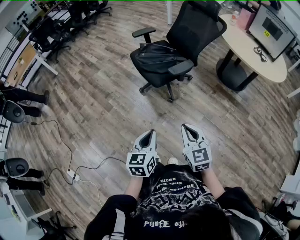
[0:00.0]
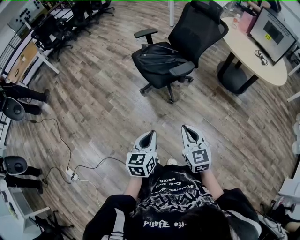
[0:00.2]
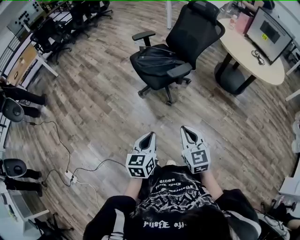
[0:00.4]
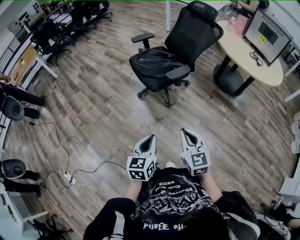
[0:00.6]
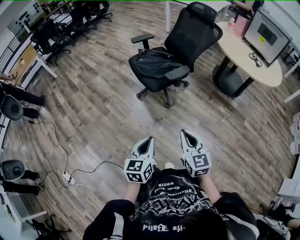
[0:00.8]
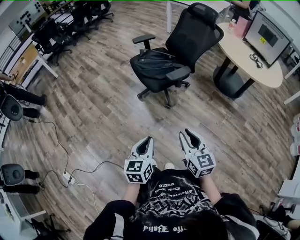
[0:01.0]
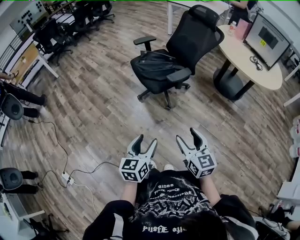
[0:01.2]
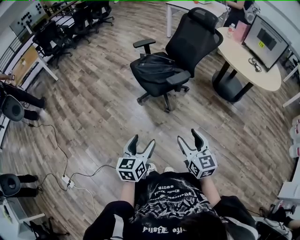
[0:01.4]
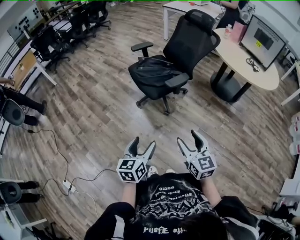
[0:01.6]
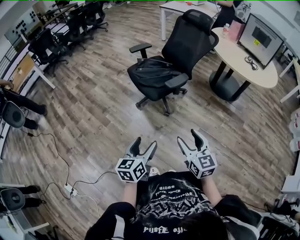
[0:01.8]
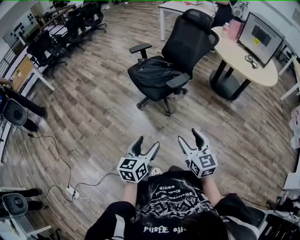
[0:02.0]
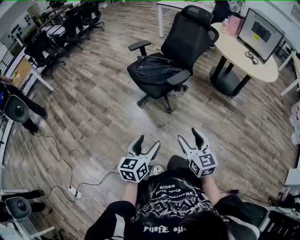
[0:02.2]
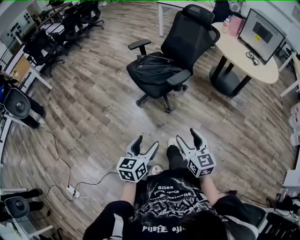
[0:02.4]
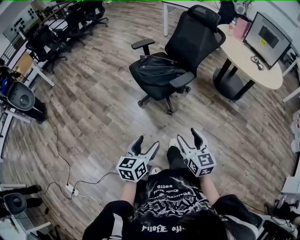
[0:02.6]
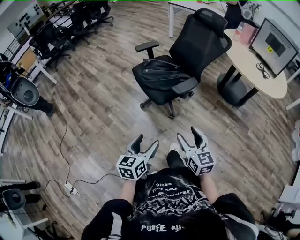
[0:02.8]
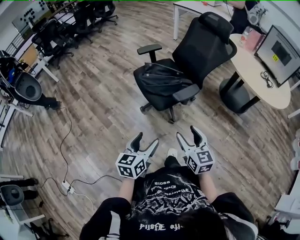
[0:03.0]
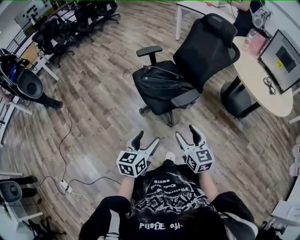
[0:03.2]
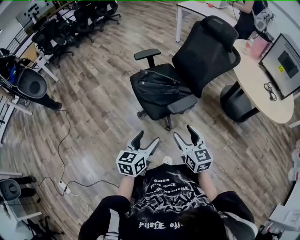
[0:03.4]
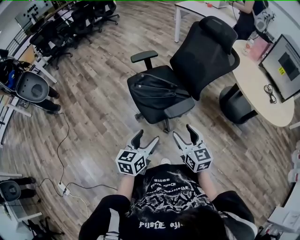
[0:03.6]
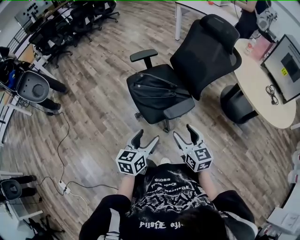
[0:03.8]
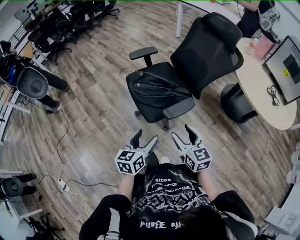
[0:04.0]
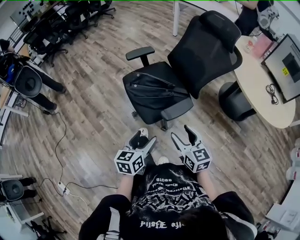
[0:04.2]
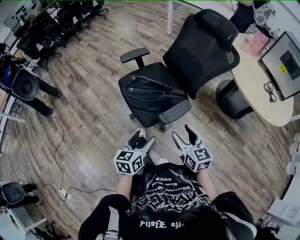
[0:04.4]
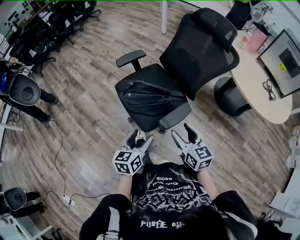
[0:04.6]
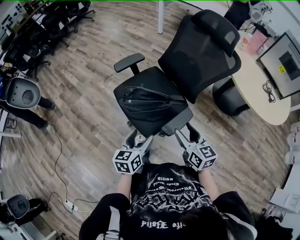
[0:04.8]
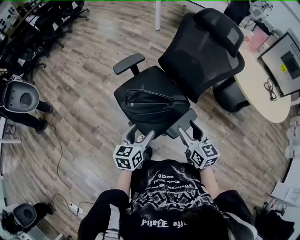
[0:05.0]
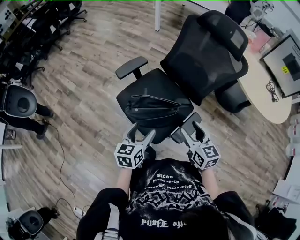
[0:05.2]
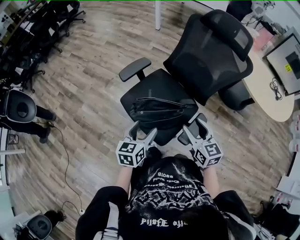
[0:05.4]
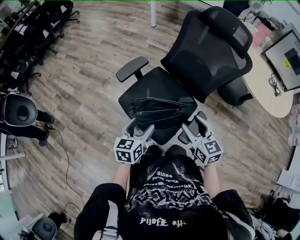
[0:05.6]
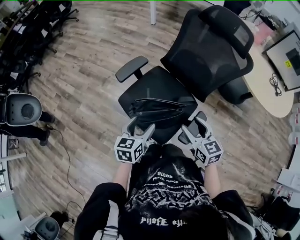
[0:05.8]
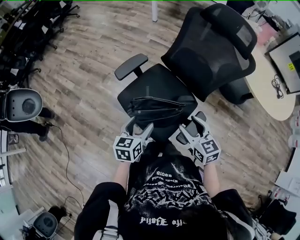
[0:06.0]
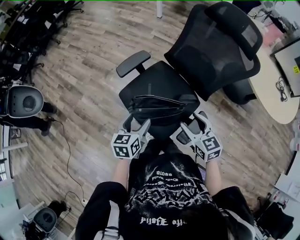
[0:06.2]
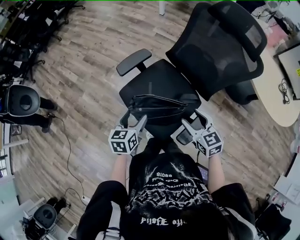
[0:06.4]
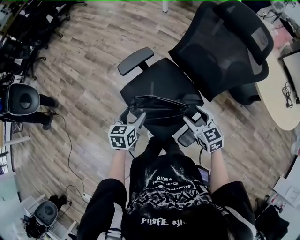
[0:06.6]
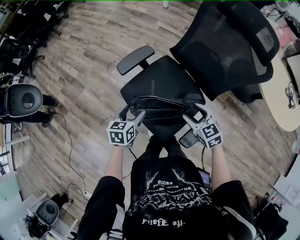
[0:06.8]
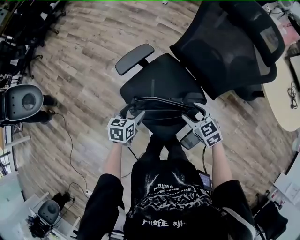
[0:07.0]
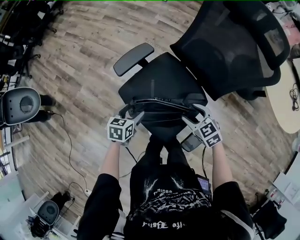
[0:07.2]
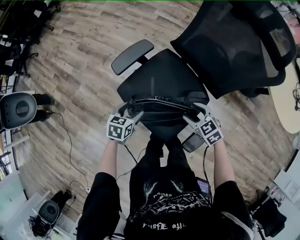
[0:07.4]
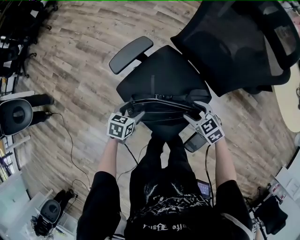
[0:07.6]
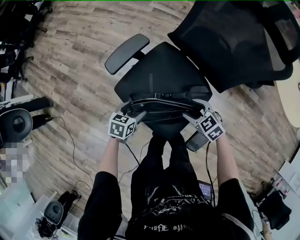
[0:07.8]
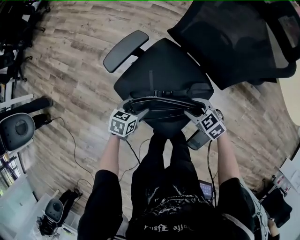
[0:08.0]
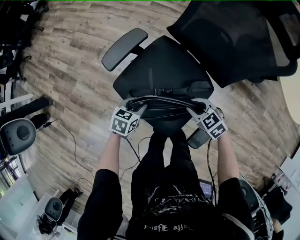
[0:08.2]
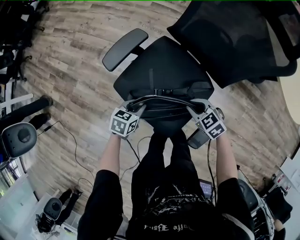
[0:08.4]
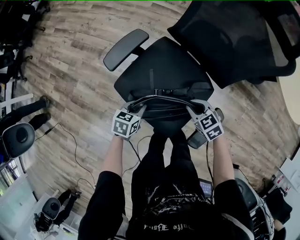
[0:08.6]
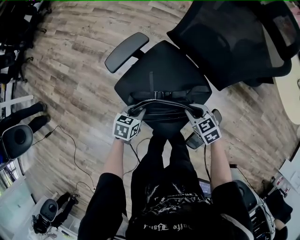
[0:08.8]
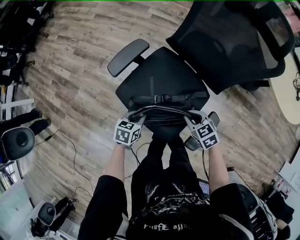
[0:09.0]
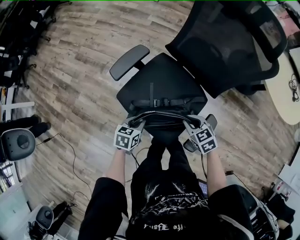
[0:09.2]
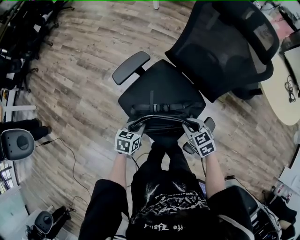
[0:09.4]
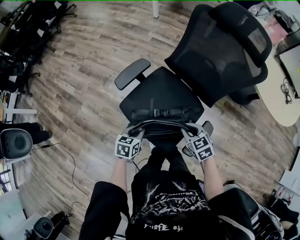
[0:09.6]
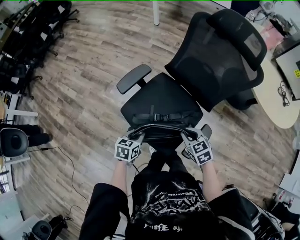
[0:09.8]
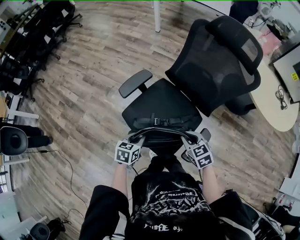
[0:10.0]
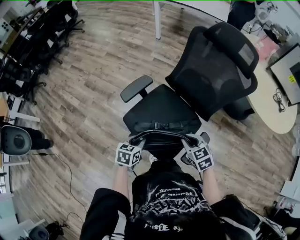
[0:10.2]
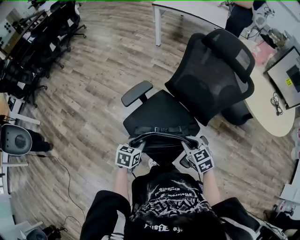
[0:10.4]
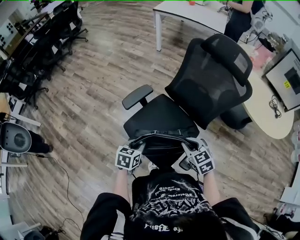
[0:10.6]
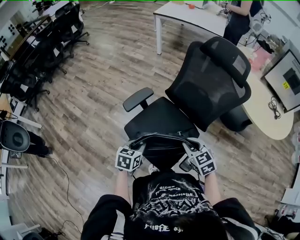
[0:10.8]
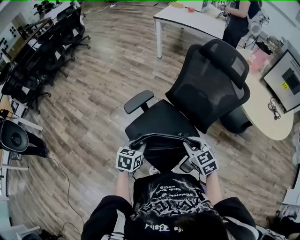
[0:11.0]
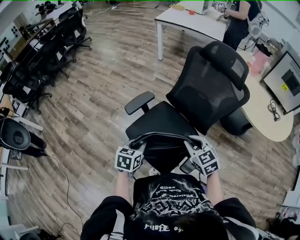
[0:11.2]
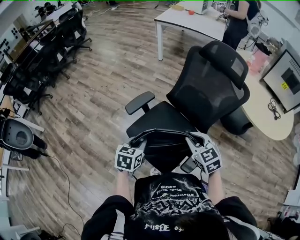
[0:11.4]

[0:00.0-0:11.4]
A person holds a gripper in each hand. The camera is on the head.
0:00.0 to 0:01.4: The left gripper opens. The right gripper opens up.
0:01.4 to 0:02.8: Both grippers travel together forward, about 10 cm.
0:02.8 to 0:04.2: The right gripper moves forward, some 25 cm. The left gripper is displaced forward and to the right by approximately 25 cm.
0:04.2 to 0:05.6: The left gripper heads forward and to the left, covering approximately 35 cm, while the right gripper moves forward, approximately 25 cm.
0:05.6 to 0:07.2: The grippers both shift downward and forward by some 20 cm. The left gripper rotates roughly 20 degrees. The right gripper rotates about 30 degrees.
0:07.2 to 0:08.6: The grippers both shift downward by roughly 10 cm. The left gripper closes. Meanwhile the right gripper closes its fingers.
0:08.6 to 0:10.0: The two grippers go roughly 15 cm upward and backward.
0:10.0 to 0:11.4: The grippers both shift upward by about 15 cm.

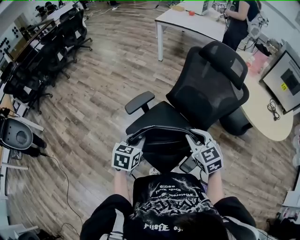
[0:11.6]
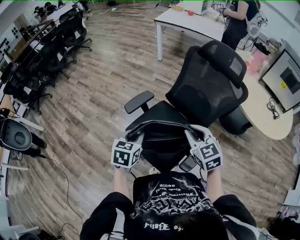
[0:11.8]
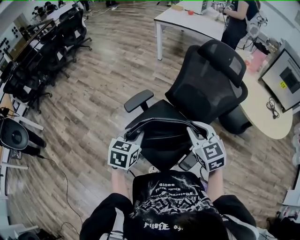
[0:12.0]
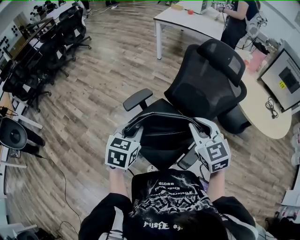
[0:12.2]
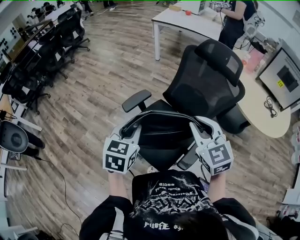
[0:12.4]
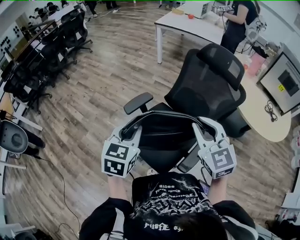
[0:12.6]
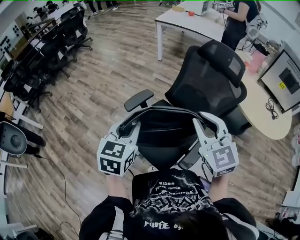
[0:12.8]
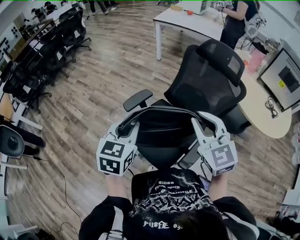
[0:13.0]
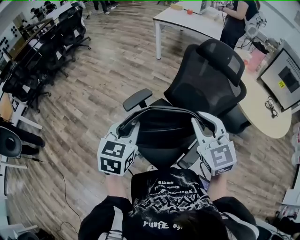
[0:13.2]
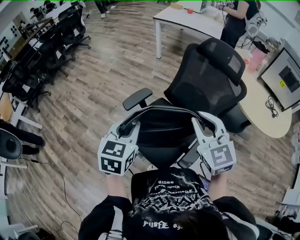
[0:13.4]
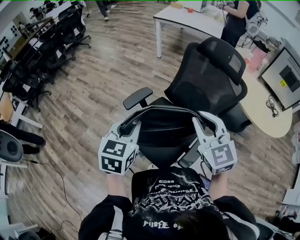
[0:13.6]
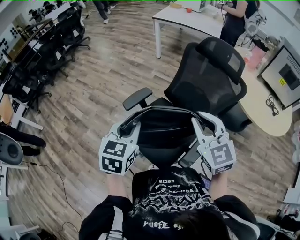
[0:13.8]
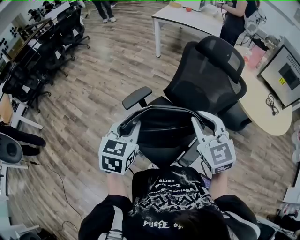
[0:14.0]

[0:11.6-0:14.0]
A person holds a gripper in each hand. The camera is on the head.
0:11.6 to 0:12.8: The grippers both shift upward by roughly 15 cm.
0:12.8 to 0:14.0: The grippers move only a little.

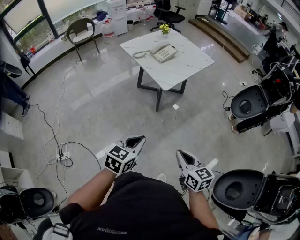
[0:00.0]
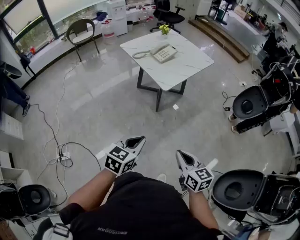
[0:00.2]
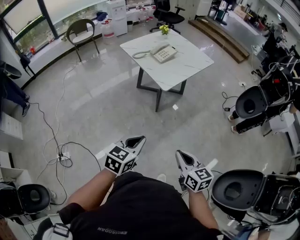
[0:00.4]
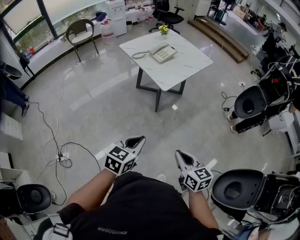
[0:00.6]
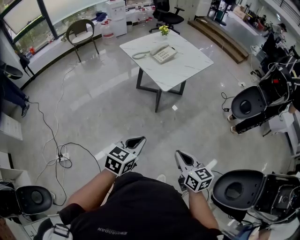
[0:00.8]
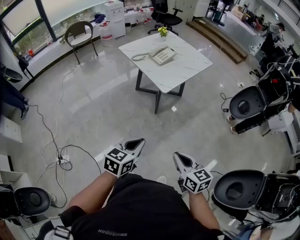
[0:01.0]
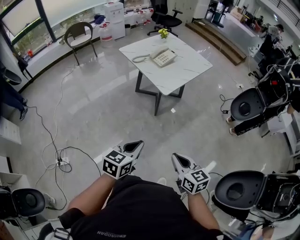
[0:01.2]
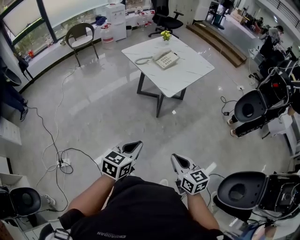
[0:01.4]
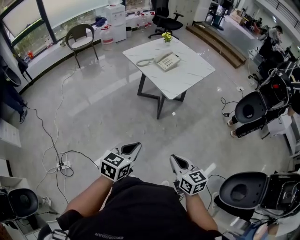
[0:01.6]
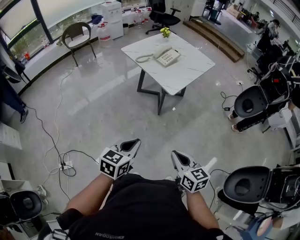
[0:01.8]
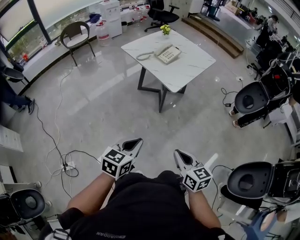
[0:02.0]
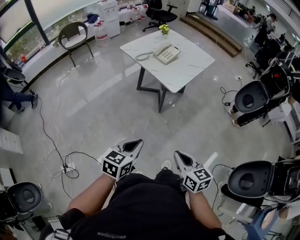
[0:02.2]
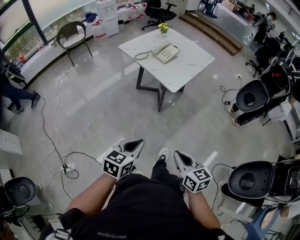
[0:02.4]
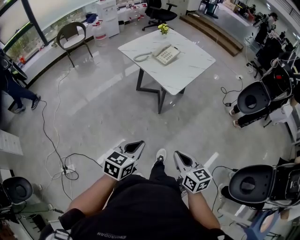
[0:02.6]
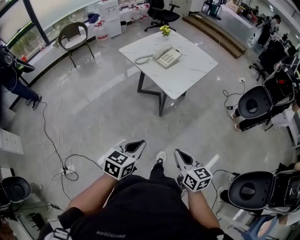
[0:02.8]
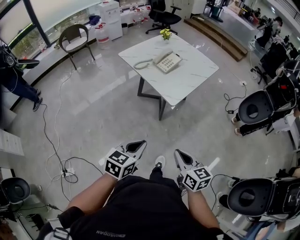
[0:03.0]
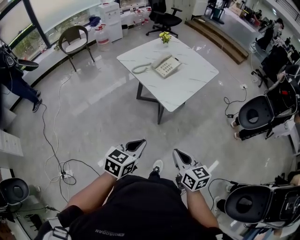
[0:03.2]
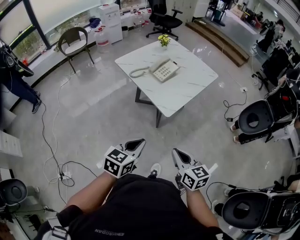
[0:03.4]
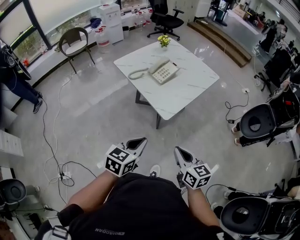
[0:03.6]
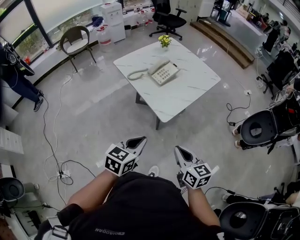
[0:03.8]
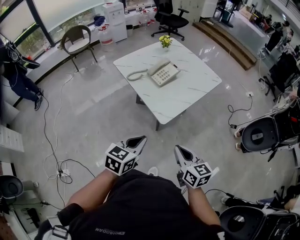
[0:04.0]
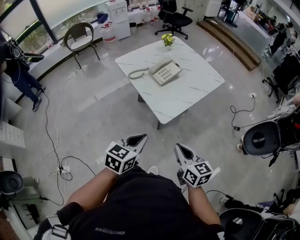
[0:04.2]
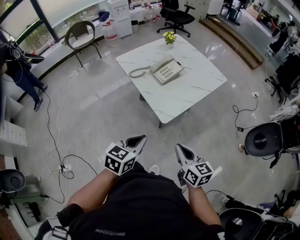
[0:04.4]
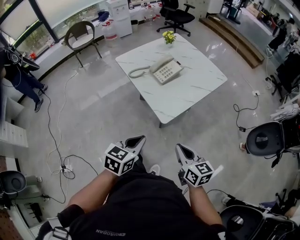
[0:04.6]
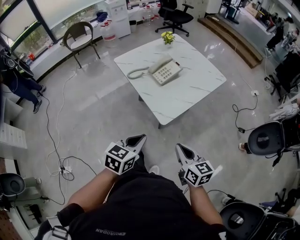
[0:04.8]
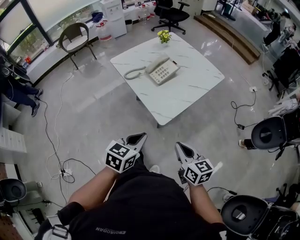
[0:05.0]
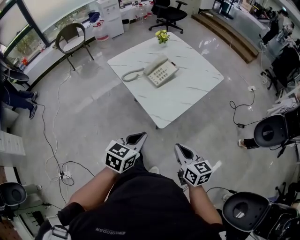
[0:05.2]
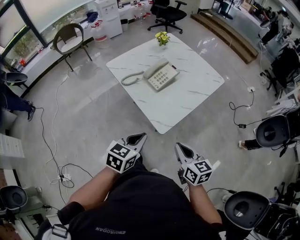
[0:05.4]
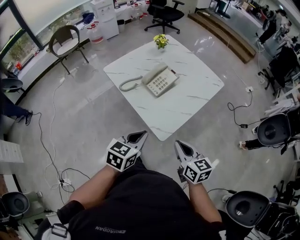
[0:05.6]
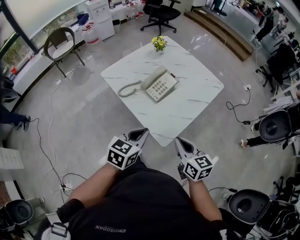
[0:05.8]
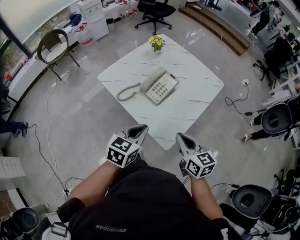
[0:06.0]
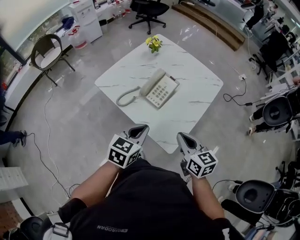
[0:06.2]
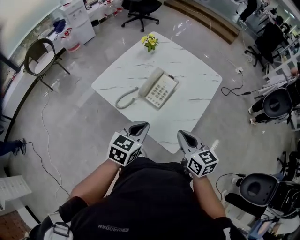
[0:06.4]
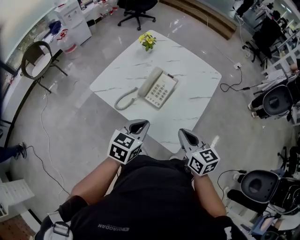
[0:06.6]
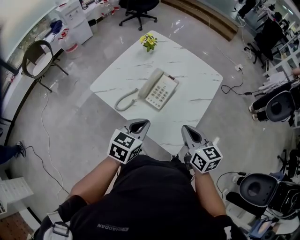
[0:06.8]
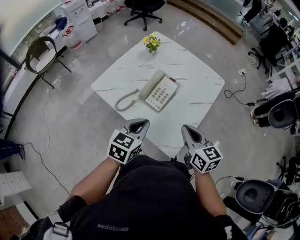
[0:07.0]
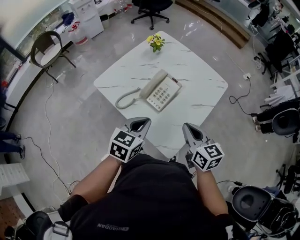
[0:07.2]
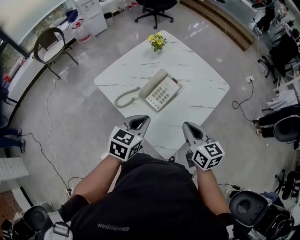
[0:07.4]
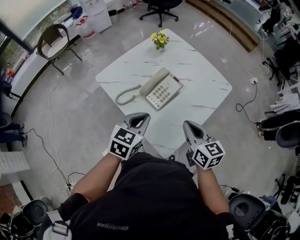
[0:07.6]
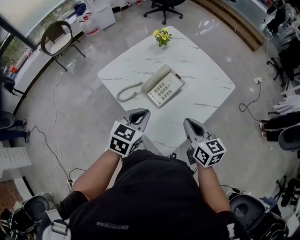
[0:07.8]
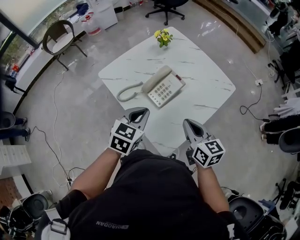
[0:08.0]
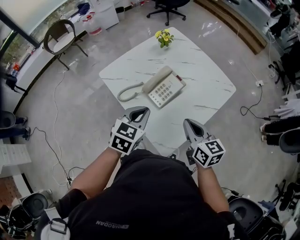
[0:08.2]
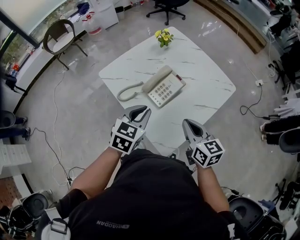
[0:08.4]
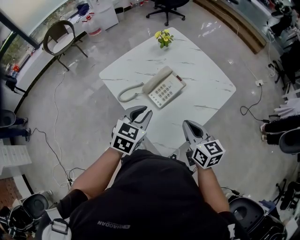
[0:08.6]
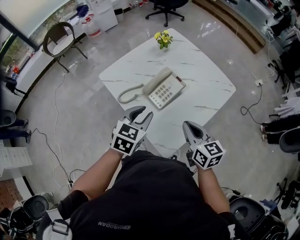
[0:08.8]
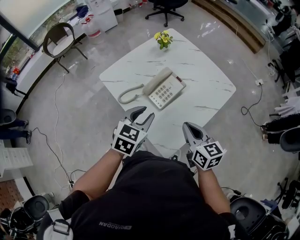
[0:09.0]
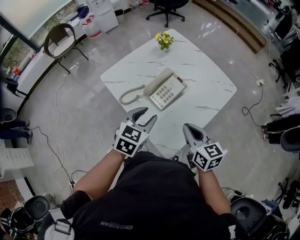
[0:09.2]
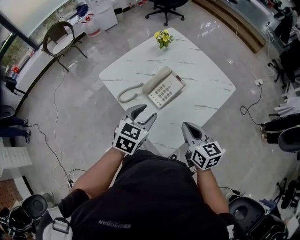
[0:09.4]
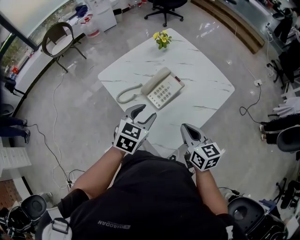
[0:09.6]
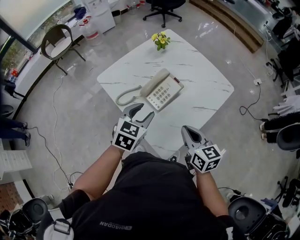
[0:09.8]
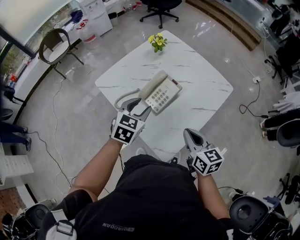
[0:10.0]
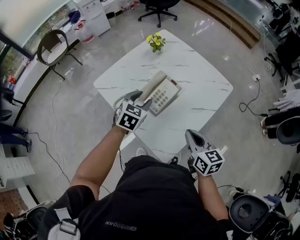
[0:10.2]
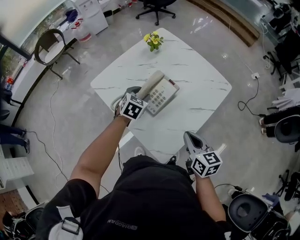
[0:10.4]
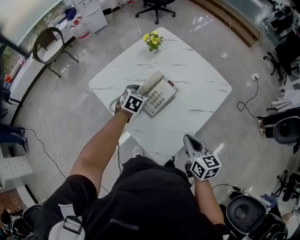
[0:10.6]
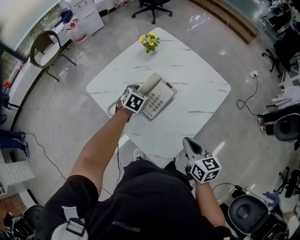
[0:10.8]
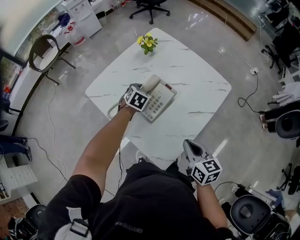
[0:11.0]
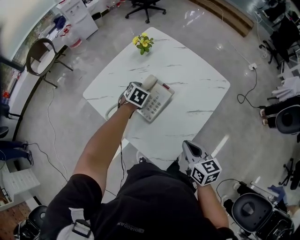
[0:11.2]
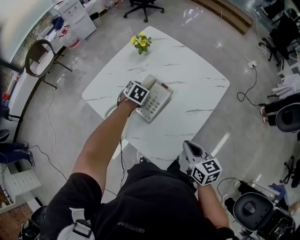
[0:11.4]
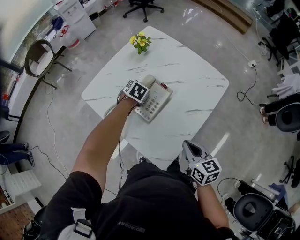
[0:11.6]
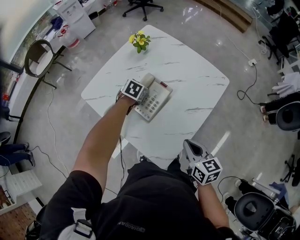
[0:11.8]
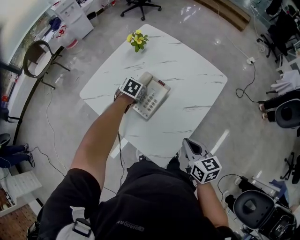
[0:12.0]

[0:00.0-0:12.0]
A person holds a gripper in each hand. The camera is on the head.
0:00.0 to 0:01.6: The grippers both shift to the left by about 10 cm.
0:01.6 to 0:03.0: Both grippers travel together forward, roughly 10 cm.
0:03.0 to 0:04.4: The grippers both shift forward and to the right by roughly 20 cm.
0:04.4 to 0:06.0: The grippers both shift forward by some 25 cm.
0:06.0 to 0:07.6: The grippers both shift forward by roughly 10 cm.
0:07.6 to 0:09.0: The left gripper opens up.
0:09.0 to 0:10.4: The left gripper moves forward and downward, approximately 20 cm, while the right gripper changes place by roughly 5 cm.
0:10.4 to 0:12.0: The left gripper is displaced forward and downward by approximately 10 cm.
